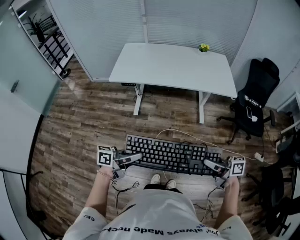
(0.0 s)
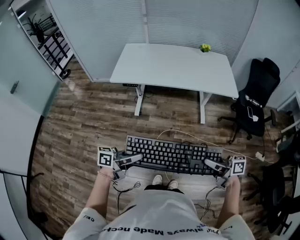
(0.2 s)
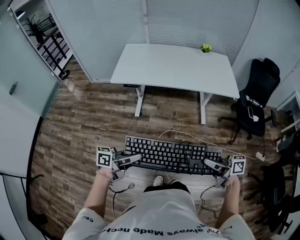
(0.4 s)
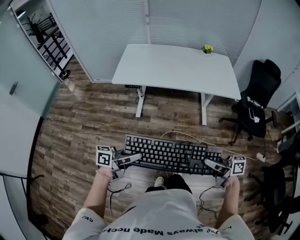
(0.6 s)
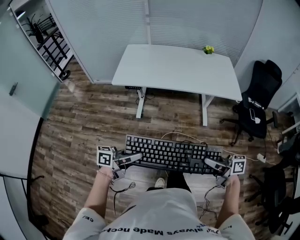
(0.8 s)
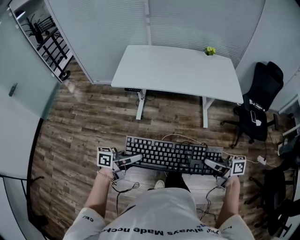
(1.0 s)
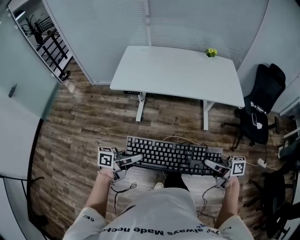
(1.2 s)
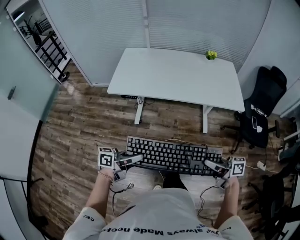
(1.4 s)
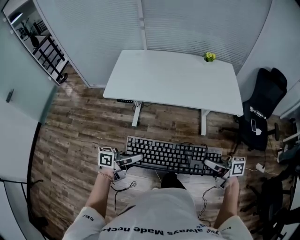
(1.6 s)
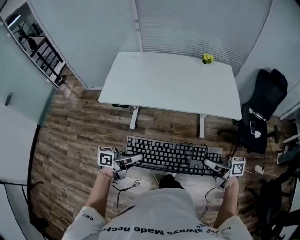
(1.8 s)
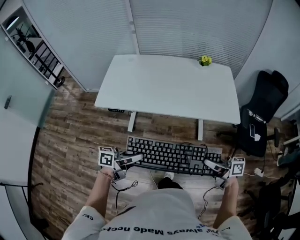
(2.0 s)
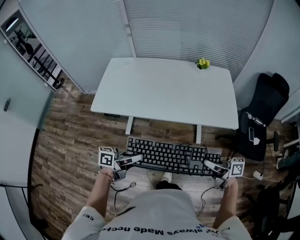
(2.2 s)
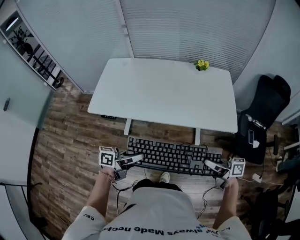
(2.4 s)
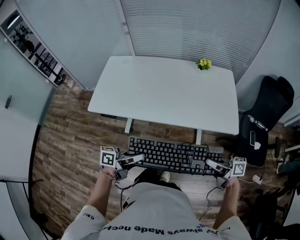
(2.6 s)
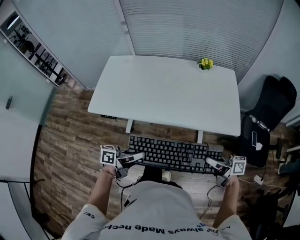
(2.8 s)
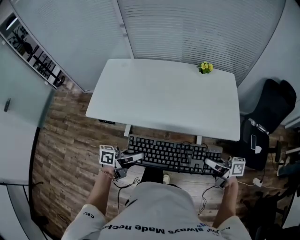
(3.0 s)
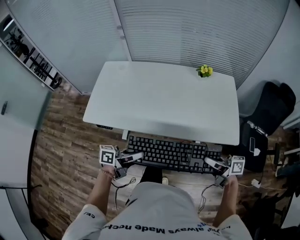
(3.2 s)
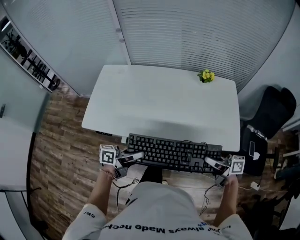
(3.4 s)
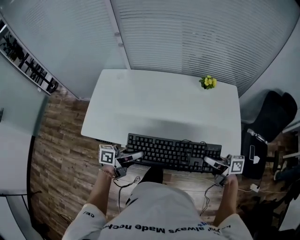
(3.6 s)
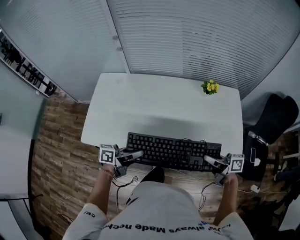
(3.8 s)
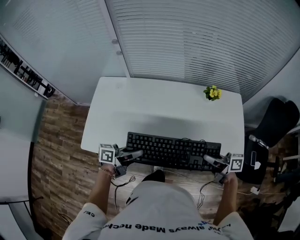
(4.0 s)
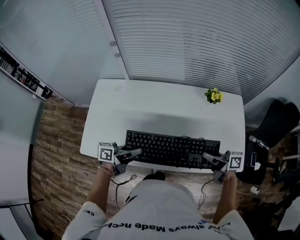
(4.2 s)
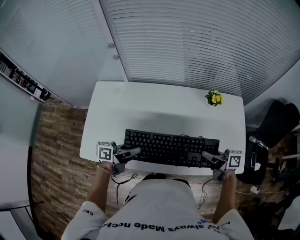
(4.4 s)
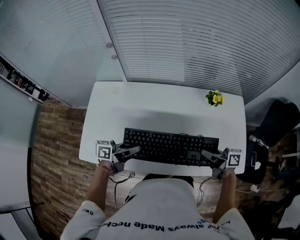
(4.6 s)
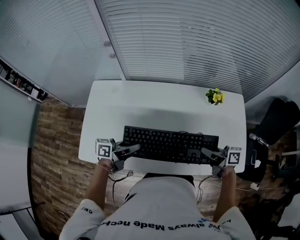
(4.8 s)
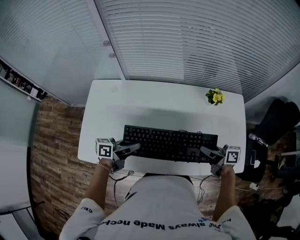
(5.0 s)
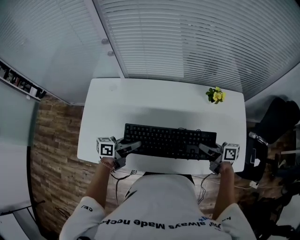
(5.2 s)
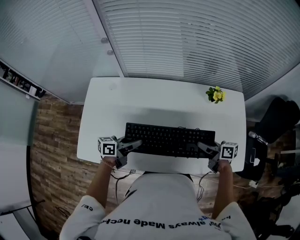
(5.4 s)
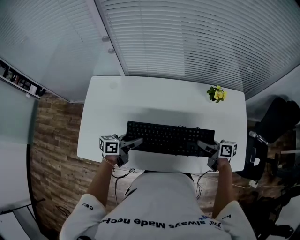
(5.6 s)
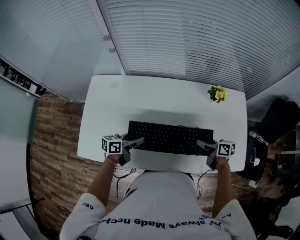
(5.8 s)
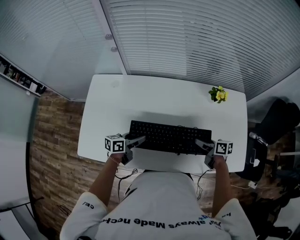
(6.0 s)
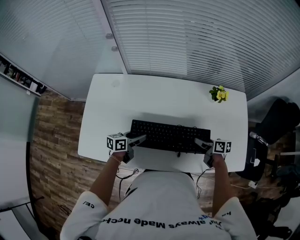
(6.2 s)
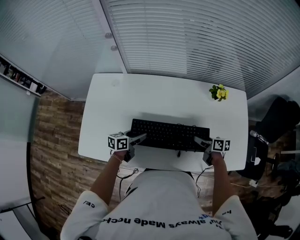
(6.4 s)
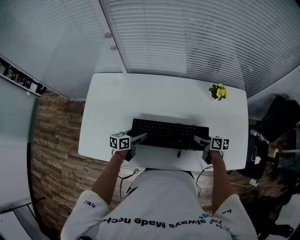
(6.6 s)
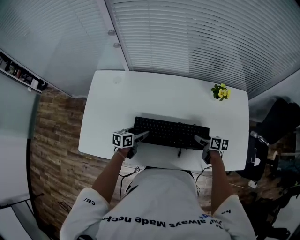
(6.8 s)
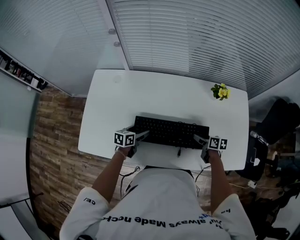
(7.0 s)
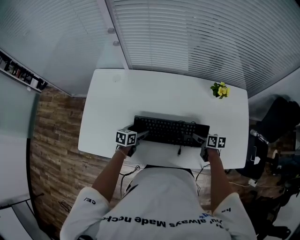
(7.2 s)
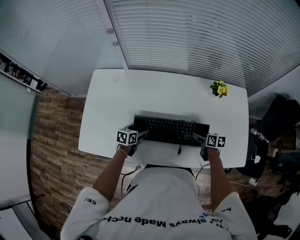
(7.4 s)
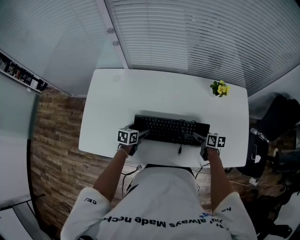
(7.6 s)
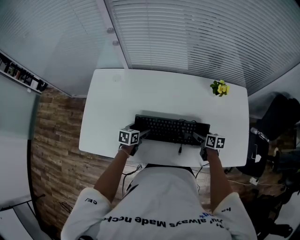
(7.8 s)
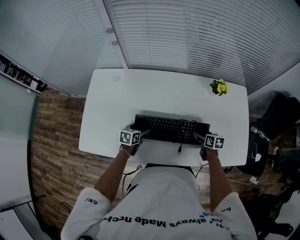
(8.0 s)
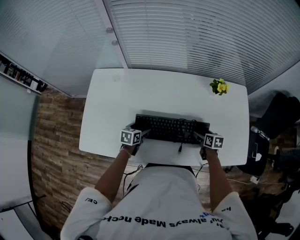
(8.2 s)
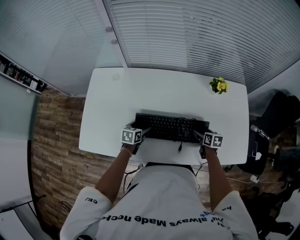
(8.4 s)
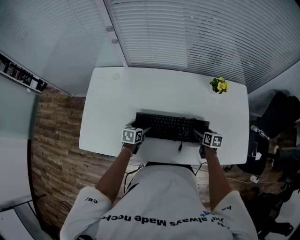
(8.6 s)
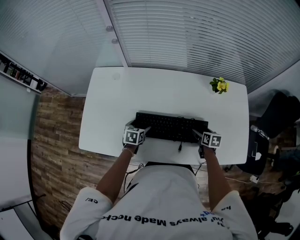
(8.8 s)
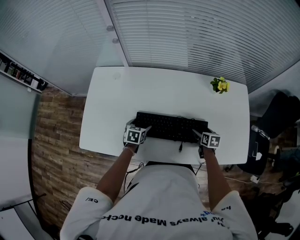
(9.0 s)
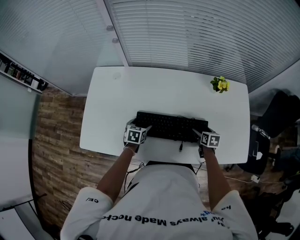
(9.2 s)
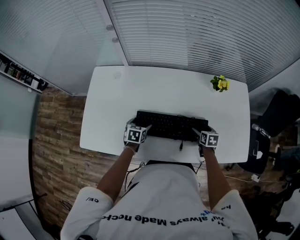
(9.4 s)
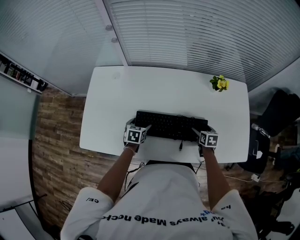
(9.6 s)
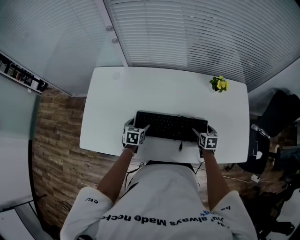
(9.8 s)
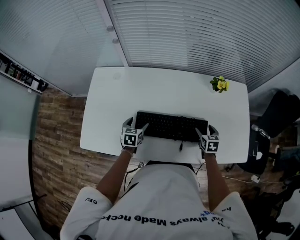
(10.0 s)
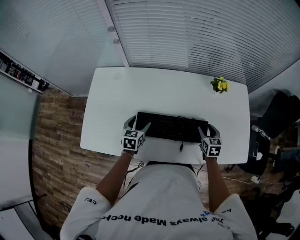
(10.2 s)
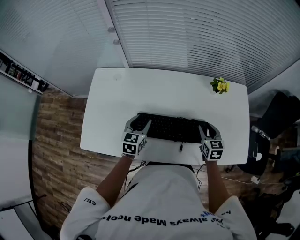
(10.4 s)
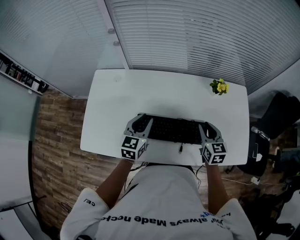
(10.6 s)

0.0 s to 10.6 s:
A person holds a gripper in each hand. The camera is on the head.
0.0 to 1.6 s: The right gripper shifts by approximately 20 cm. Meanwhile the left gripper ends up roughly 20 cm from where it was.
1.6 to 3.0 s: Both grippers travel together forward and to the right, roughly 25 cm.
3.0 to 4.6 s: The grippers both shift forward by approximately 35 cm.
4.6 to 6.0 s: The right gripper moves downward and forward, roughly 15 cm, changes its angle by roughly 20 degrees, and opens, while the left gripper travels downward by some 10 cm.
6.0 to 7.6 s: The two grippers go some 10 cm downward. The left gripper swivels some 30 degrees.
7.6 to 9.0 s: The grippers make only small movements.
9.0 to 10.6 s: The two grippers go some 20 cm upward. The left gripper angles its fingers upward, by approximately 30 degrees, and closes. Meanwhile the right gripper turns by some 30 degrees, and closes up.

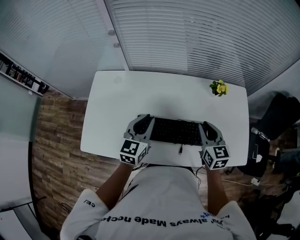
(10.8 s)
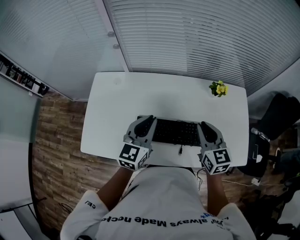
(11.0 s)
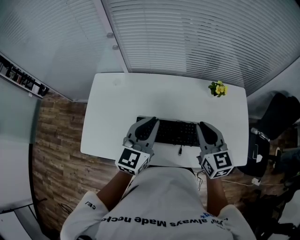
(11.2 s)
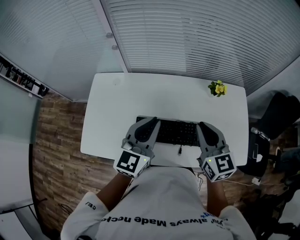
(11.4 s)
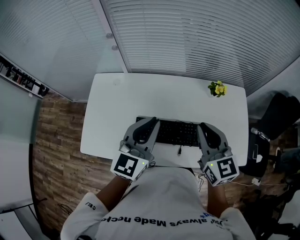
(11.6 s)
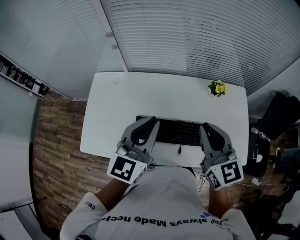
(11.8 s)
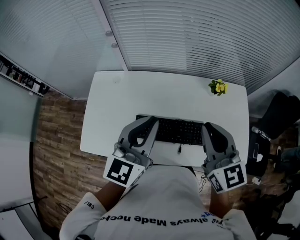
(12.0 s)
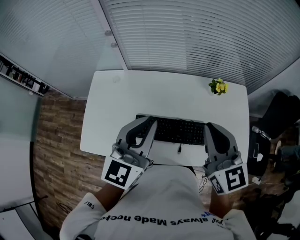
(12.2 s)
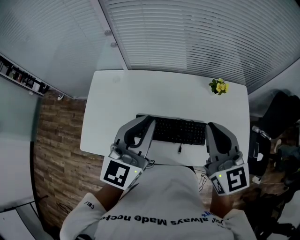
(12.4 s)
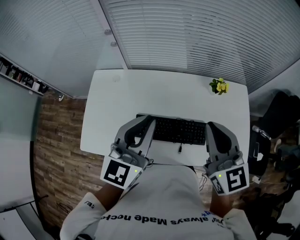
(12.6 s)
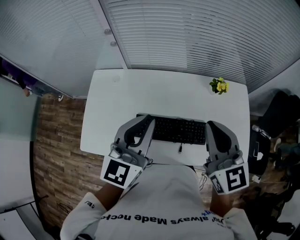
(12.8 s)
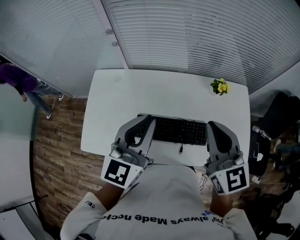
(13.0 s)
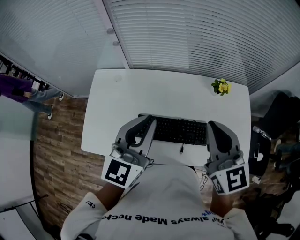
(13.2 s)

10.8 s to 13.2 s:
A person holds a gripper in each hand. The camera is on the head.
10.8 to 12.0 s: The grippers both shift upward by some 15 cm.
12.0 to 13.2 s: The grippers move only a little.

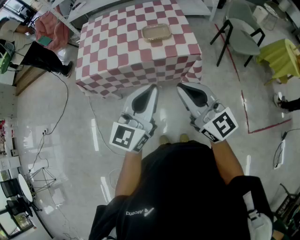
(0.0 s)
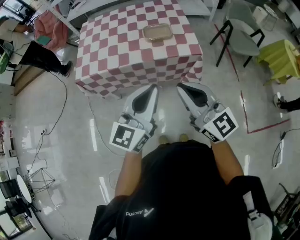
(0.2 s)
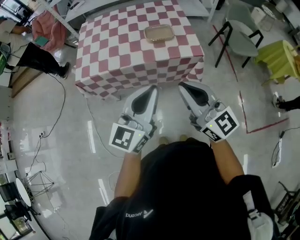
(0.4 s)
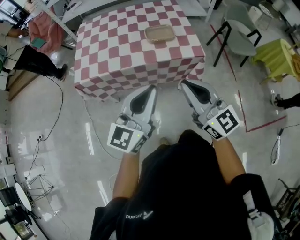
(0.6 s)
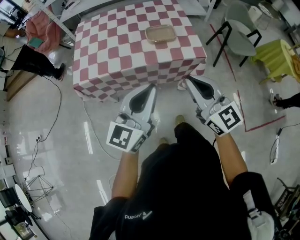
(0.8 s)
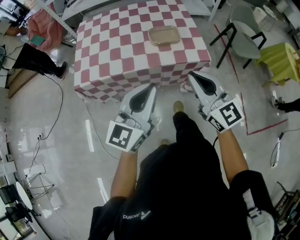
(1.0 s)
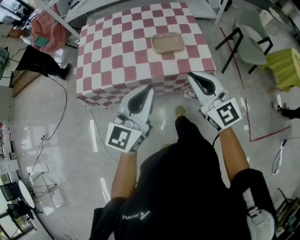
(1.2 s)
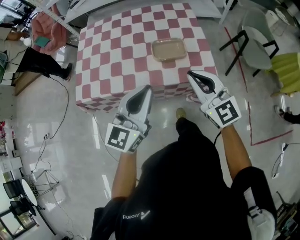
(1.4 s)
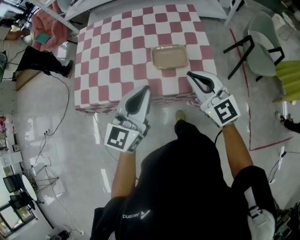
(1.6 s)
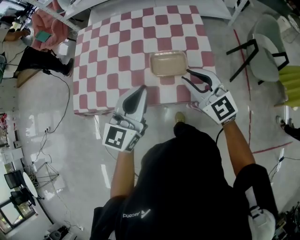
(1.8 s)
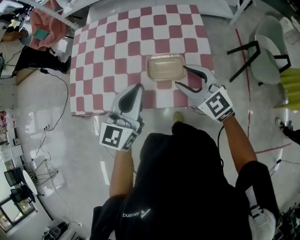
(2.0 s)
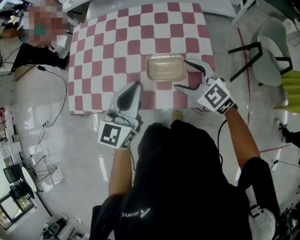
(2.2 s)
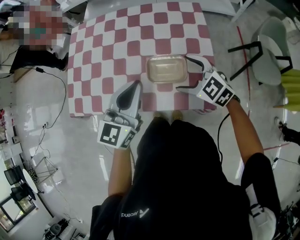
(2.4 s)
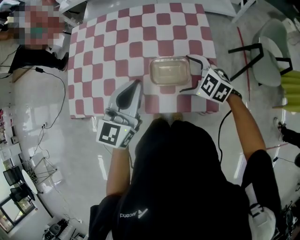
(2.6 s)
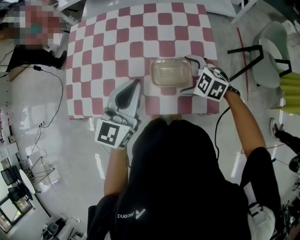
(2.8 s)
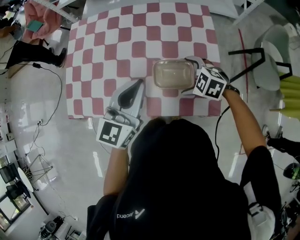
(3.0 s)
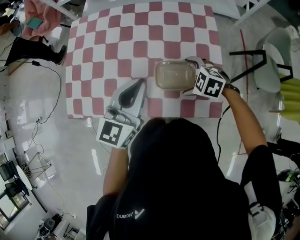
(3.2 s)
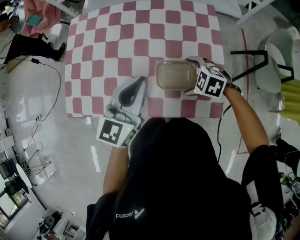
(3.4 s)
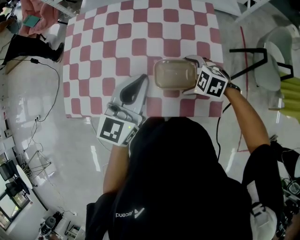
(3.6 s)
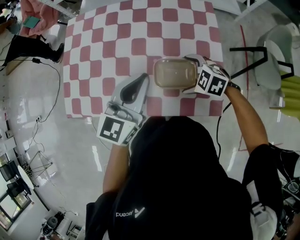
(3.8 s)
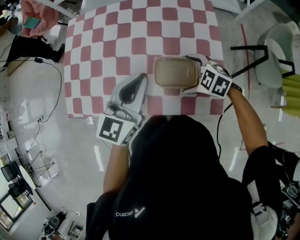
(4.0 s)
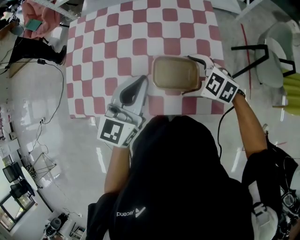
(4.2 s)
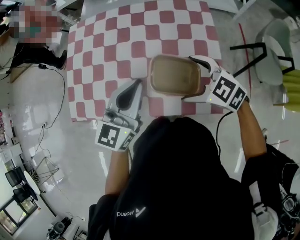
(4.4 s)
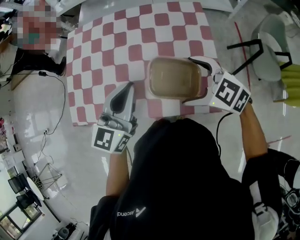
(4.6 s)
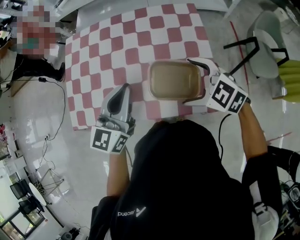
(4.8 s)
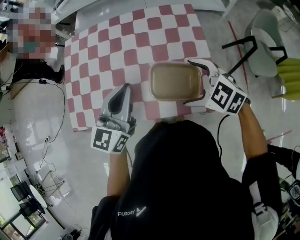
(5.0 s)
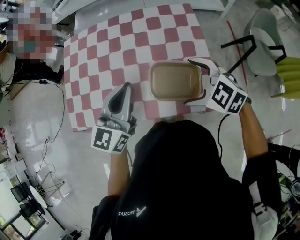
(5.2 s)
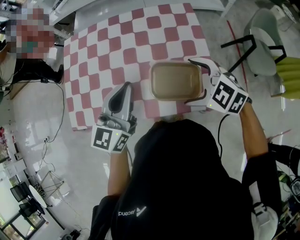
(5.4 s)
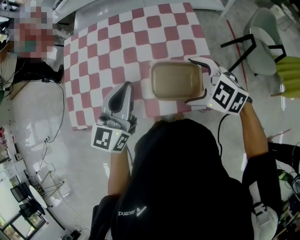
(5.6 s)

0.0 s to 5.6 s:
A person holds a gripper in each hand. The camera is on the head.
0.0 to 1.4 s: Both grippers travel together forward, approximately 25 cm.
1.4 to 2.8 s: The right gripper shifts about 30 cm forward and downward, tilts its fingers some 50 degrees downward, and opens its fingers. The left gripper heads forward, covering roughly 20 cm.
2.8 to 4.2 s: There are only small adjustments of the grippers.
4.2 to 5.6 s: The right gripper shifts approximately 10 cm upward and backward.

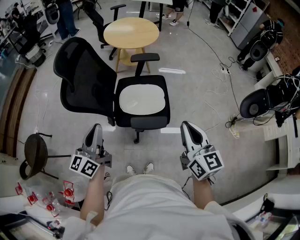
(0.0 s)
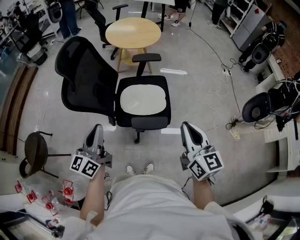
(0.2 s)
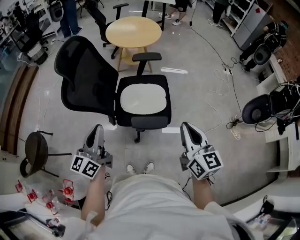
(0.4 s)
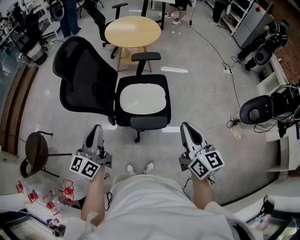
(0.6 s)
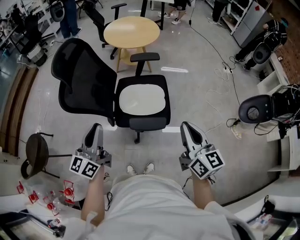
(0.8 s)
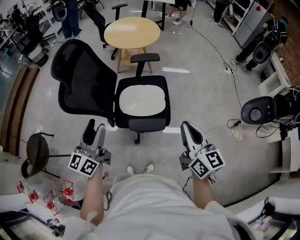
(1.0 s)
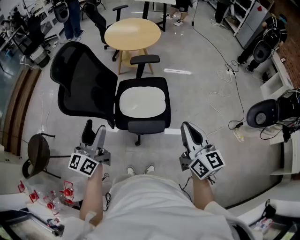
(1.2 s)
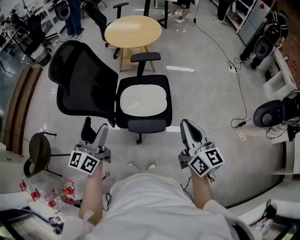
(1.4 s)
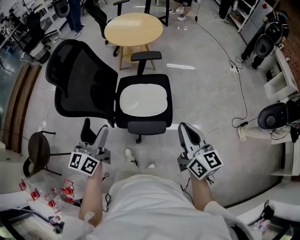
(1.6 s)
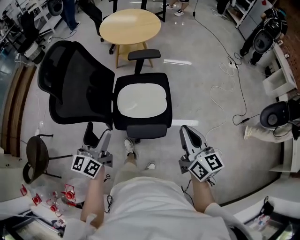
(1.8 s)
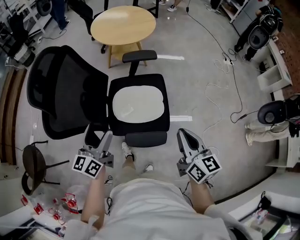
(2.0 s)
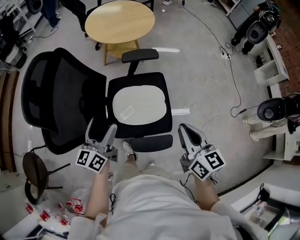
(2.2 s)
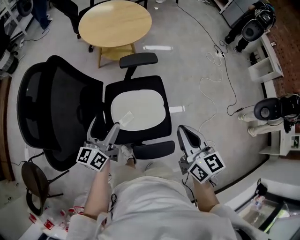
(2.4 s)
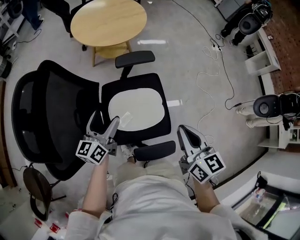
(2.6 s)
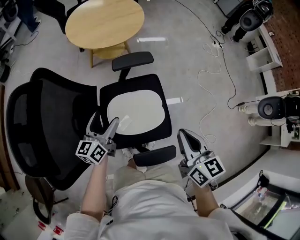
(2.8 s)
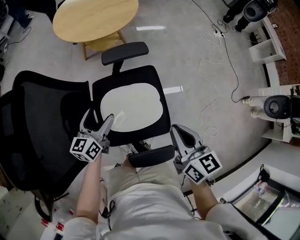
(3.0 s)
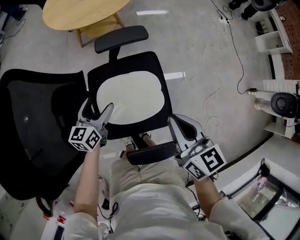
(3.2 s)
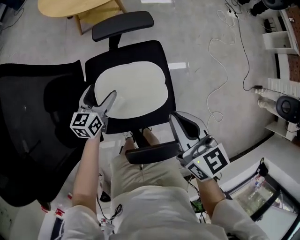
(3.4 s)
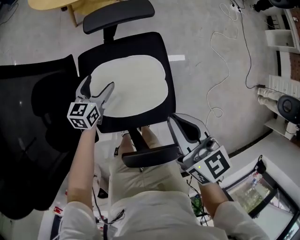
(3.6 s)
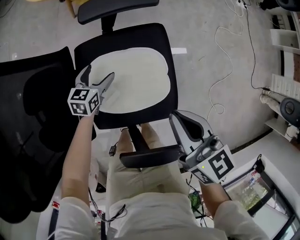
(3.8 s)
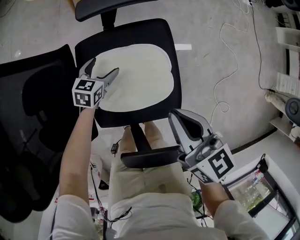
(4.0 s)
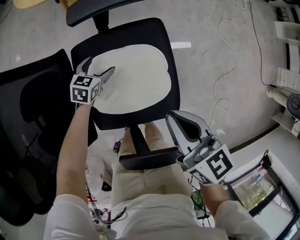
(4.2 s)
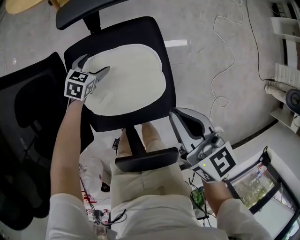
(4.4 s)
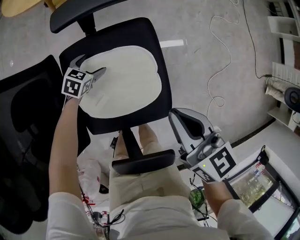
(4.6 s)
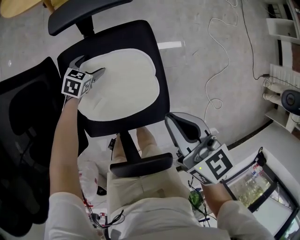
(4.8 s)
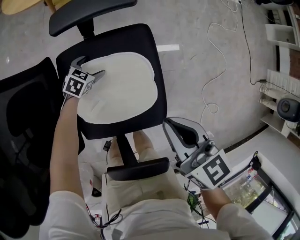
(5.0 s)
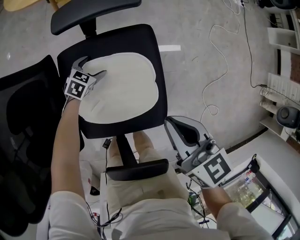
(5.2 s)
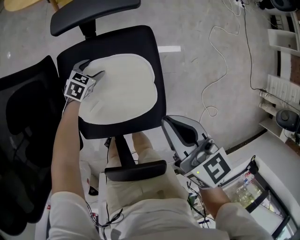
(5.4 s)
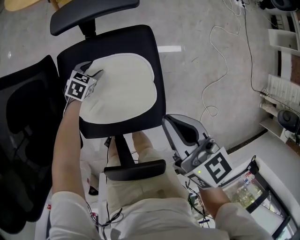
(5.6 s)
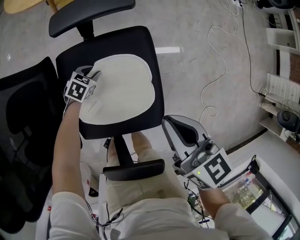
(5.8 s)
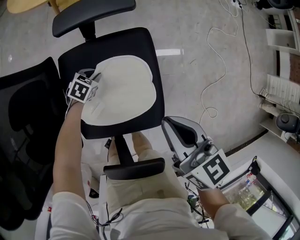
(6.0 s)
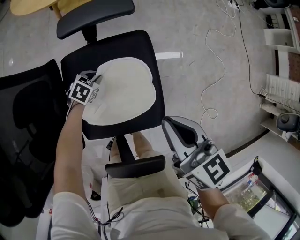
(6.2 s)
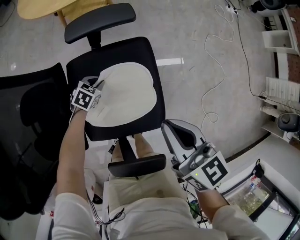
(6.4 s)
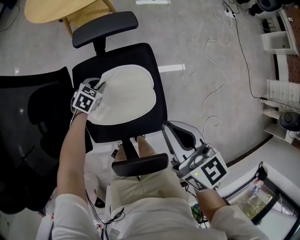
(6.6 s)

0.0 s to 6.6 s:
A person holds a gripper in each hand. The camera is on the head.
0.0 to 1.6 s: The two grippers go about 5 cm forward. The left gripper opens.
1.6 to 3.2 s: The left gripper travels forward and downward by some 50 cm, and changes its angle by about 30 degrees. The right gripper heads forward and downward, covering about 30 cm.
3.2 to 5.0 s: The right gripper heads downward, covering approximately 15 cm, while the left gripper travels downward by approximately 30 cm, and tilts its fingers some 40 degrees downward.
5.0 to 6.6 s: Both grippers travel together upward, about 10 cm. The left gripper closes.
